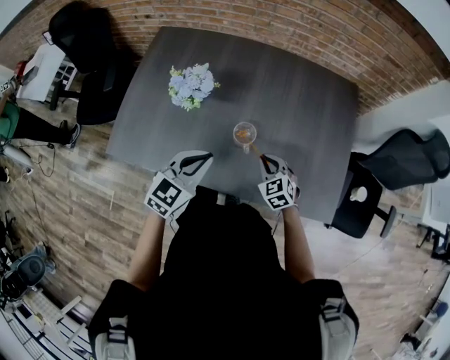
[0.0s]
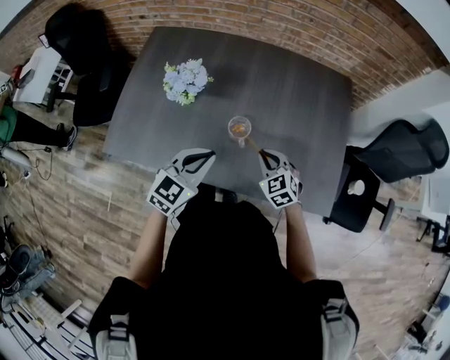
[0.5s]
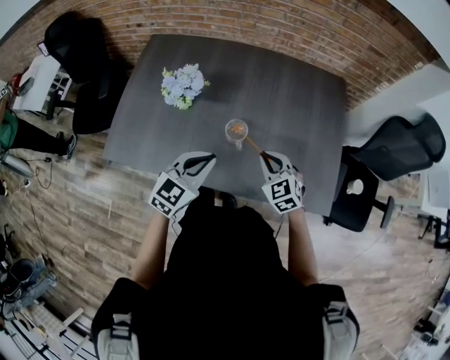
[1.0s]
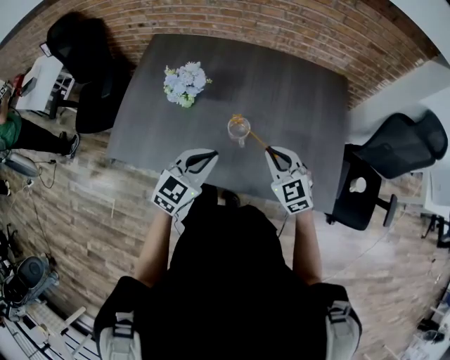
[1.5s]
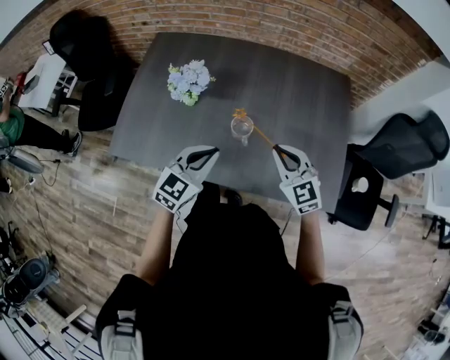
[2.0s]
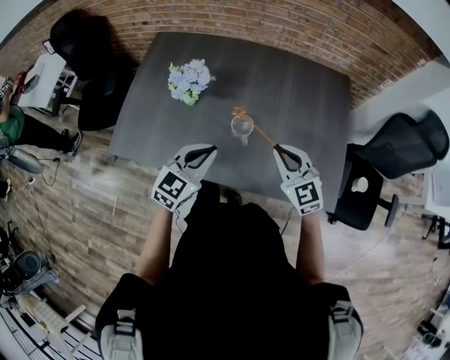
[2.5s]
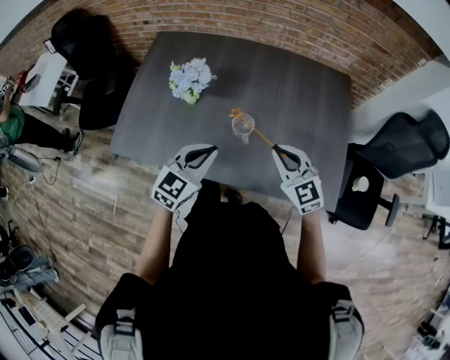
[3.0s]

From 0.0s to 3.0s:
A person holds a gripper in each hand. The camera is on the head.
From 0.0s to 1.5s: The right gripper moves upward, roughly 15 cm.
From 1.5s to 3.0s: The grippers move only a little.

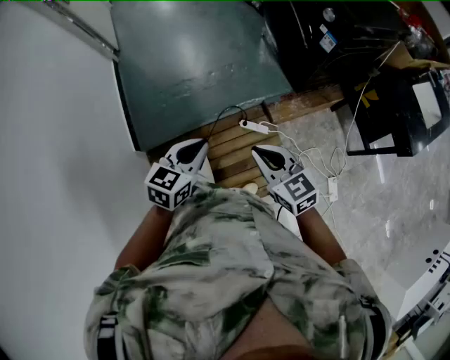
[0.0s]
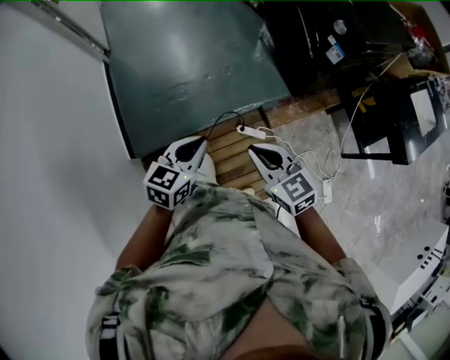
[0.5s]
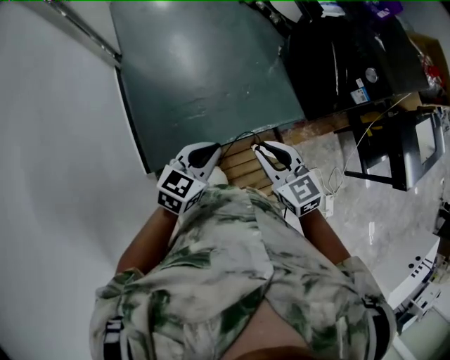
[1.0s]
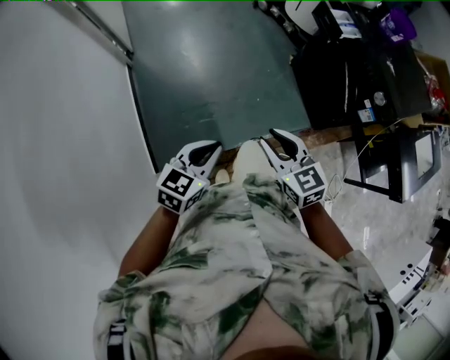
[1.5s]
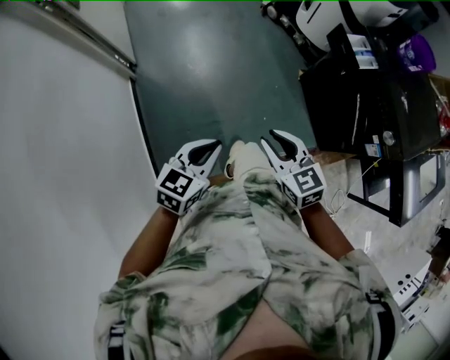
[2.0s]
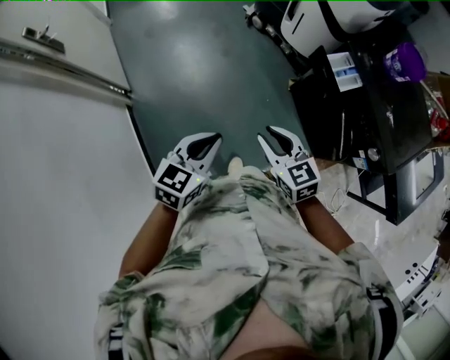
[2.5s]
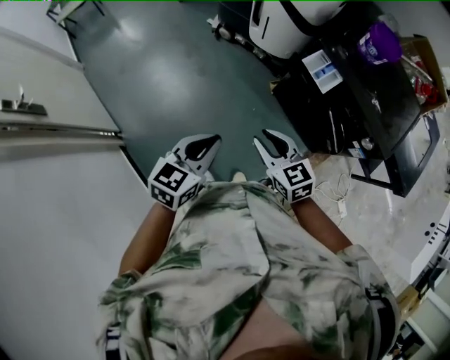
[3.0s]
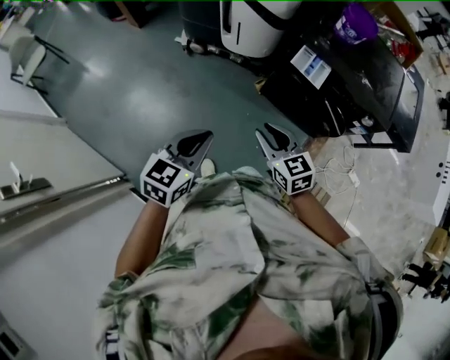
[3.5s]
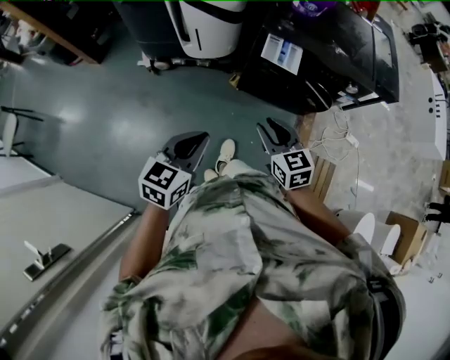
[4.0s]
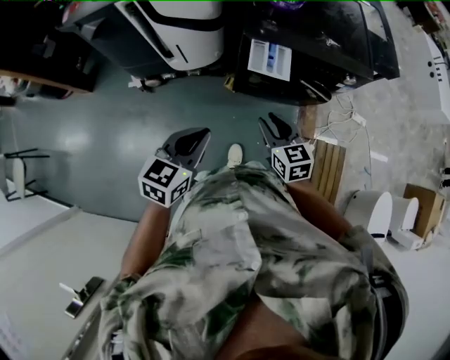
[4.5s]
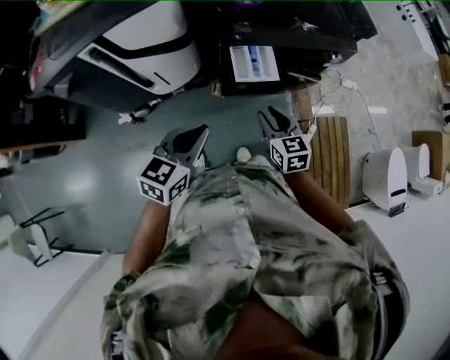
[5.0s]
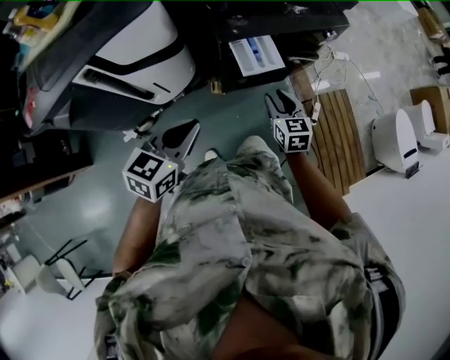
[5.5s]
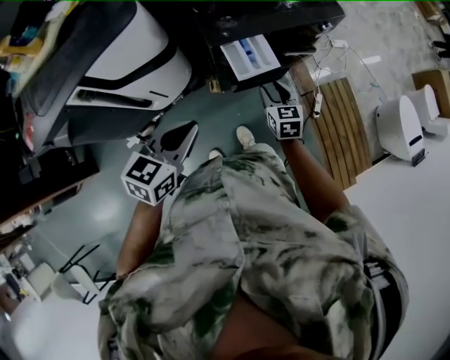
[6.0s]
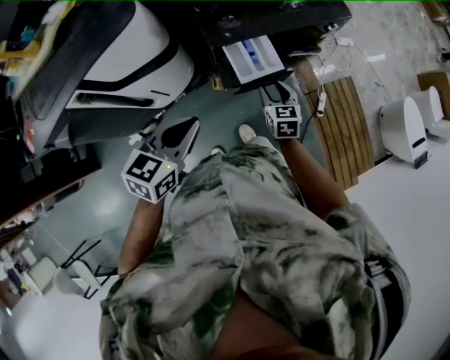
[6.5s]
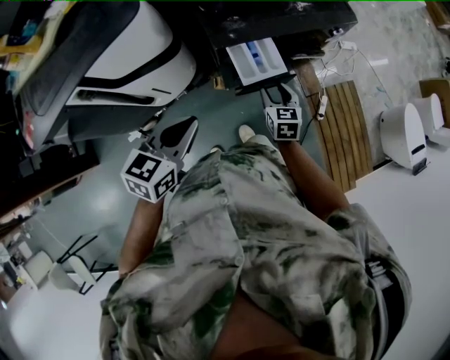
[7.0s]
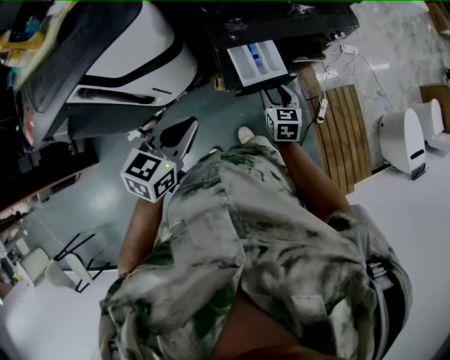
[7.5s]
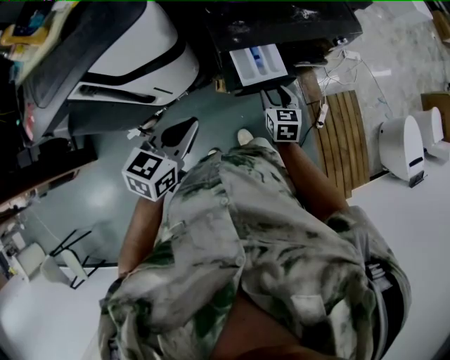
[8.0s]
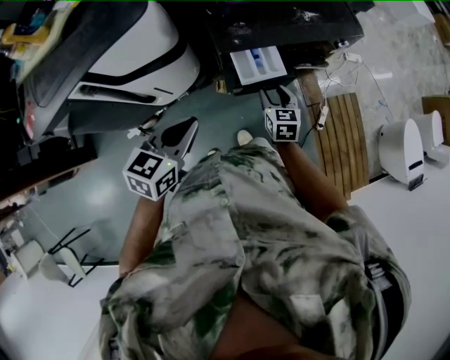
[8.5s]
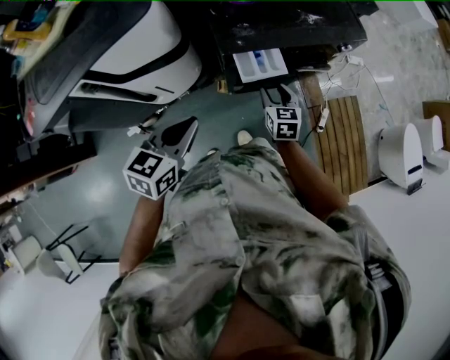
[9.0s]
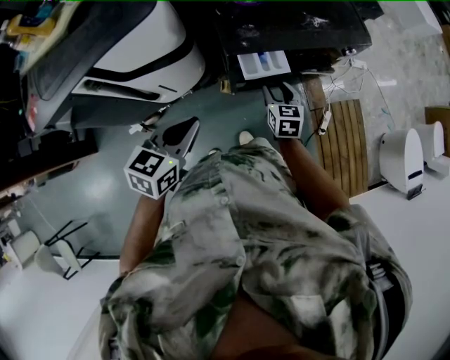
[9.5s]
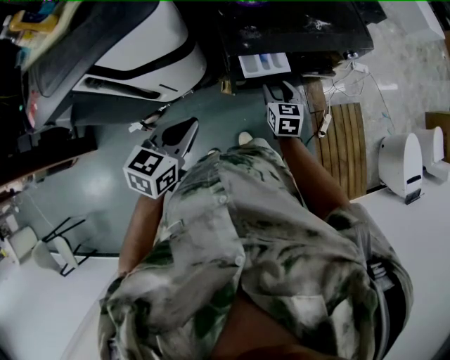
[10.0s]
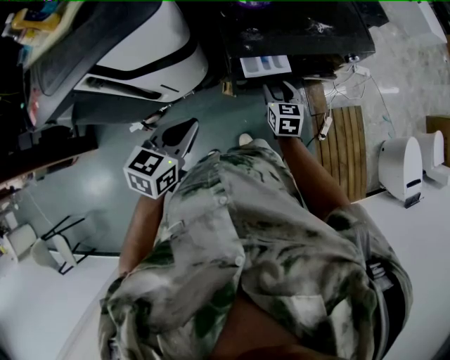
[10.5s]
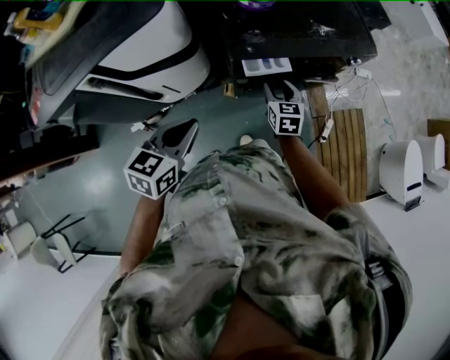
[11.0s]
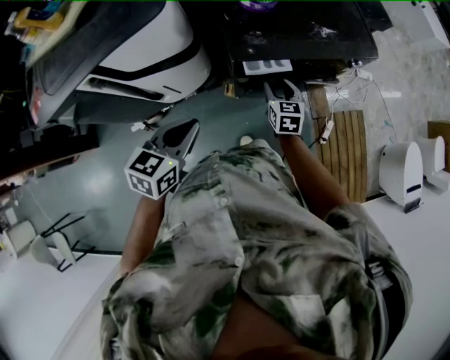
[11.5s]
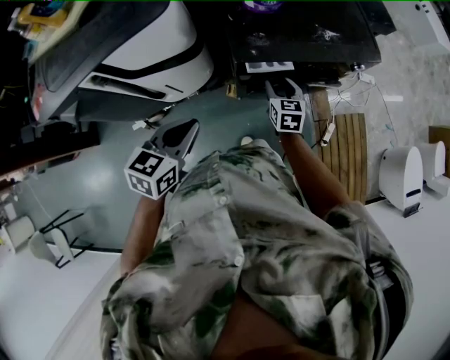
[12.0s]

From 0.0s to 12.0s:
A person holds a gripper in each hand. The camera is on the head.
From 0.0s to 2.0s: Both grippers are carried forward and to the left, some 50 cm. The right gripper opens up.
From 2.0s to 4.0s: The left gripper changes place by roughly 50 cm, and changes its angle by some 50 degrees. The right gripper shifts by approximately 40 cm, and swivels about 60 degrees.
From 4.0s to 6.0s: The right gripper changes place by some 30 cm, and rotates approximately 50 degrees. The left gripper changes place by some 30 cm, and turns by about 40 degrees.
From 6.0s to 8.0s: There are only small adjustments of the grippers.
From 8.0s to 10.0s: There are only small adjustments of the grippers.
From 10.0s to 12.0s: The grippers stay close to where they were, moving slightly.

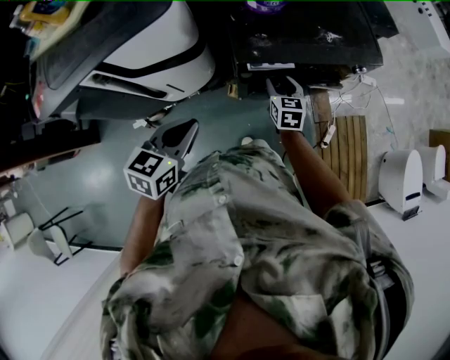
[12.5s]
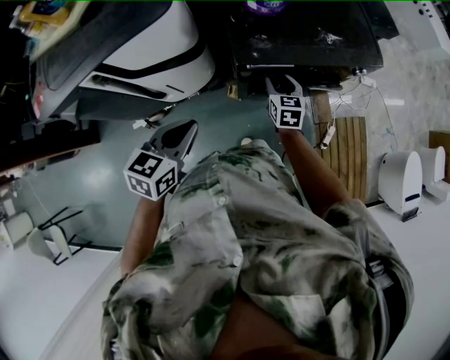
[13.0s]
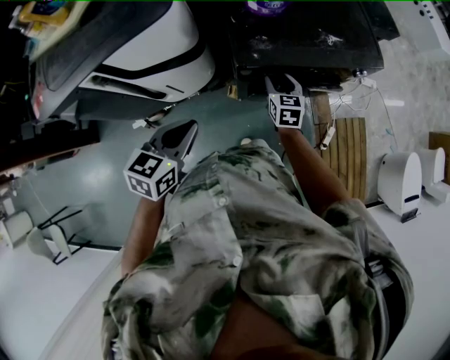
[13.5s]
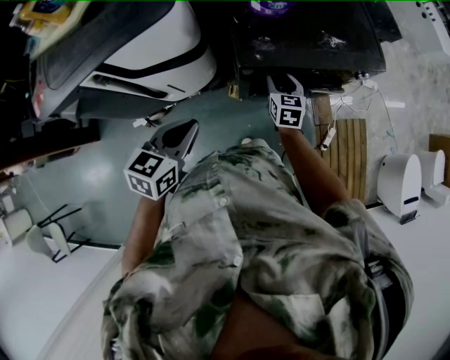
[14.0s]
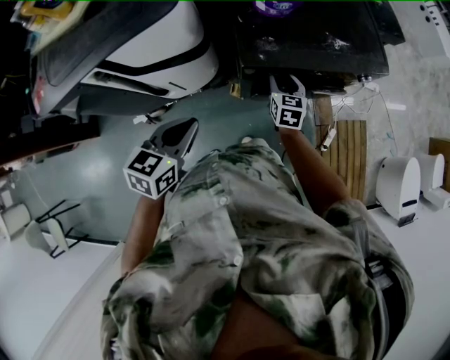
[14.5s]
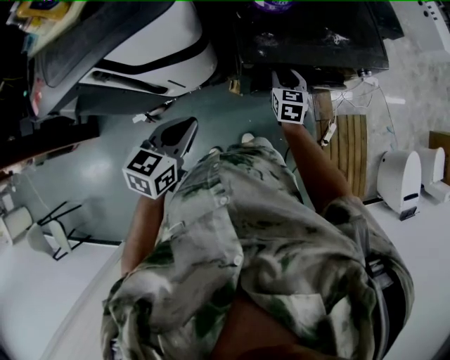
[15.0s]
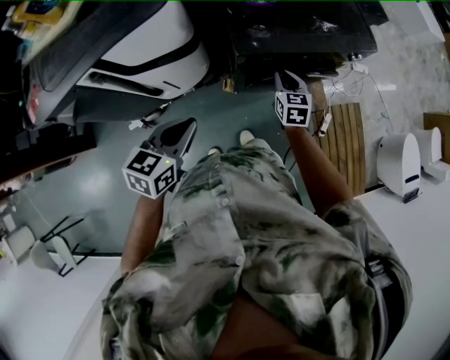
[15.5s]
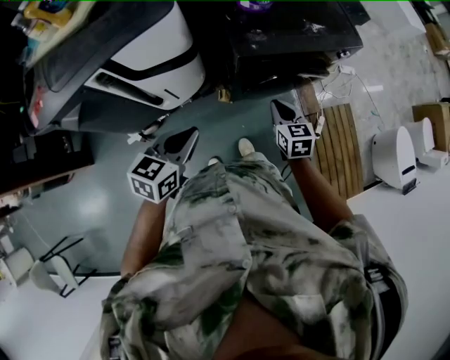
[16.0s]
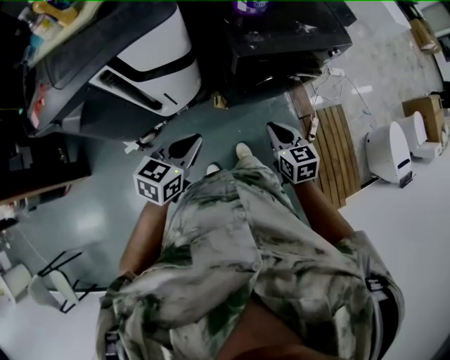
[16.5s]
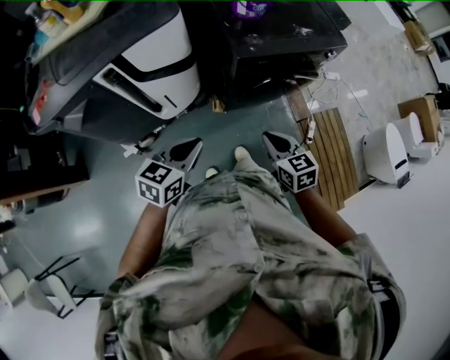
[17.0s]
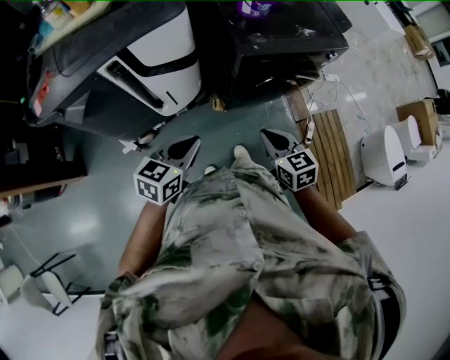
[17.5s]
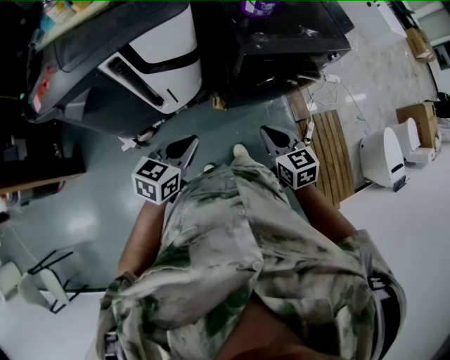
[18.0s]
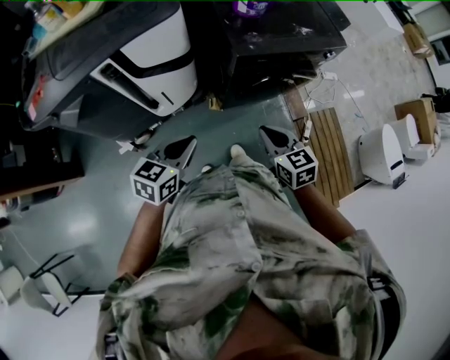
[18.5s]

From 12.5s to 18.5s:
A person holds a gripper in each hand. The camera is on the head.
From 12.5s to 14.5s: The grippers move only a little.
From 14.5s to 16.5s: The right gripper is displaced backward by roughly 30 cm, and closes up. Meanwhile the left gripper heads backward, covering approximately 15 cm.
From 16.5s to 18.5s: The right gripper shifts by about 5 cm.

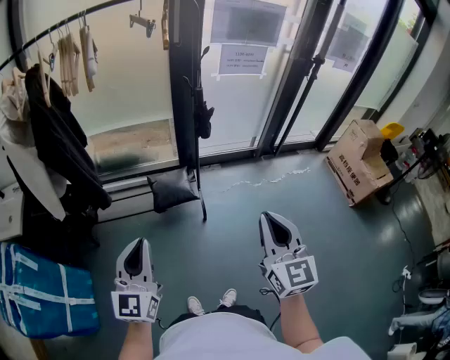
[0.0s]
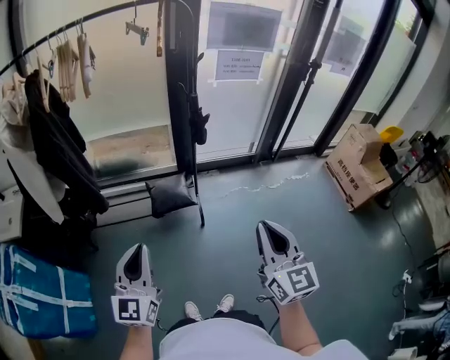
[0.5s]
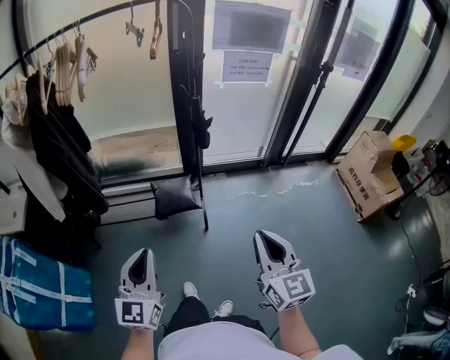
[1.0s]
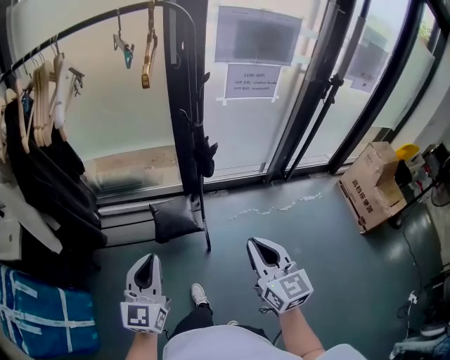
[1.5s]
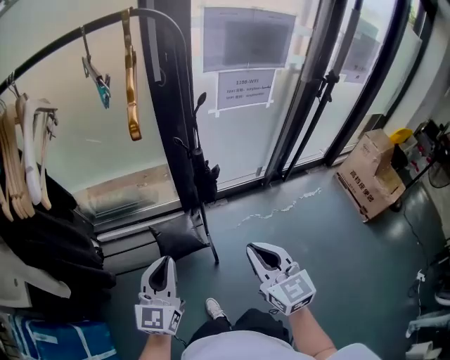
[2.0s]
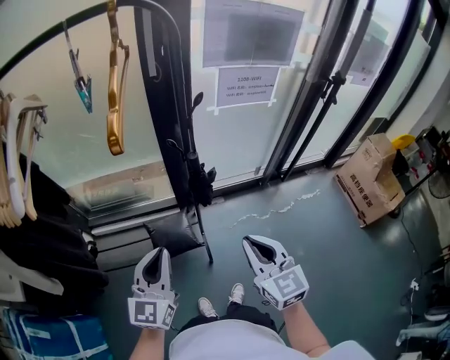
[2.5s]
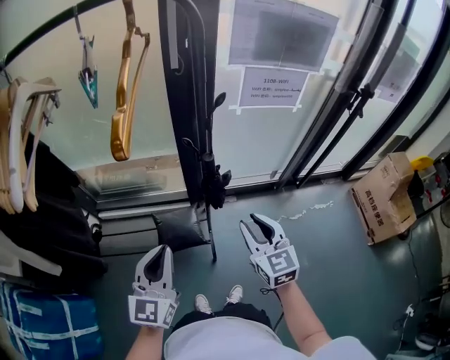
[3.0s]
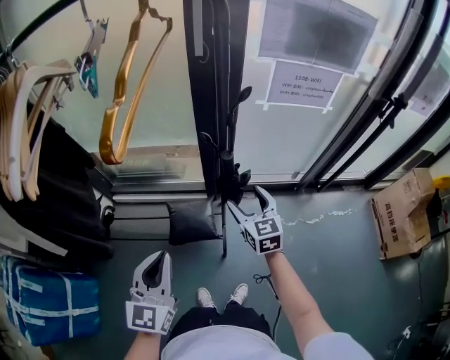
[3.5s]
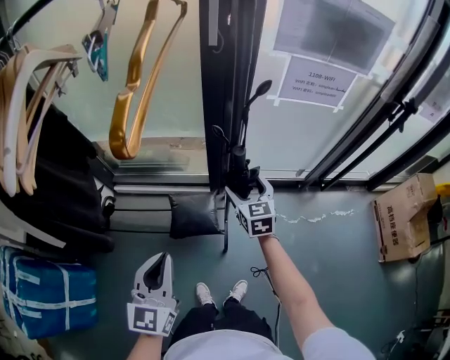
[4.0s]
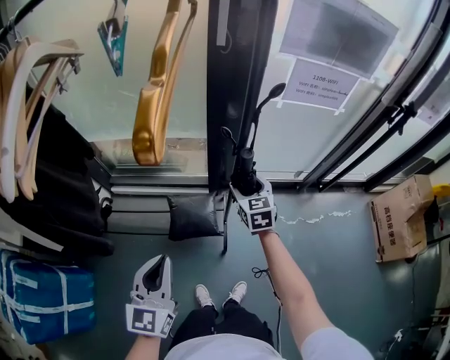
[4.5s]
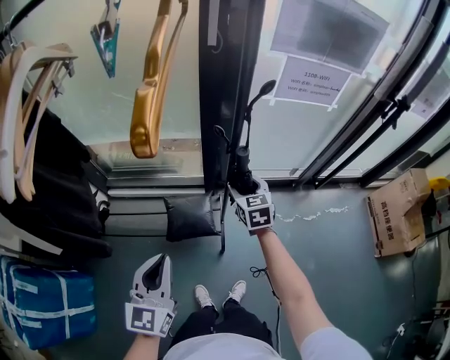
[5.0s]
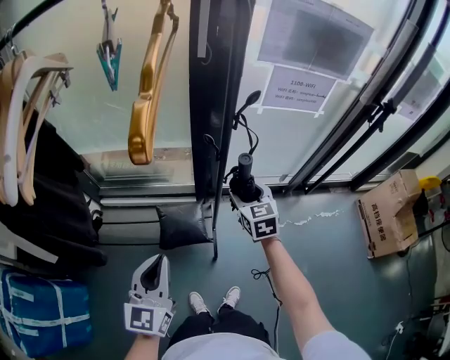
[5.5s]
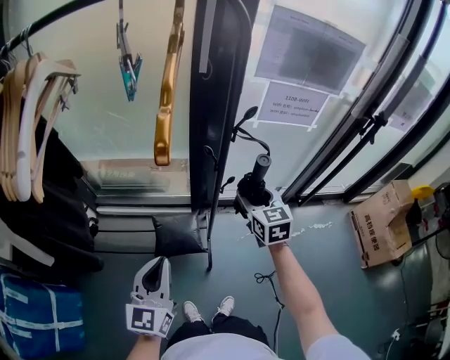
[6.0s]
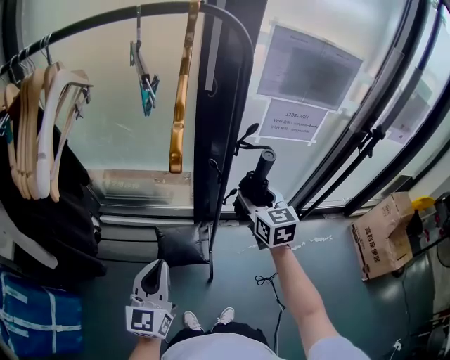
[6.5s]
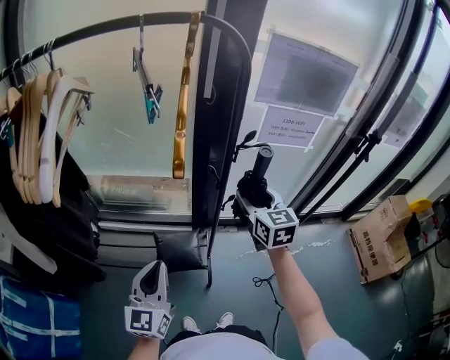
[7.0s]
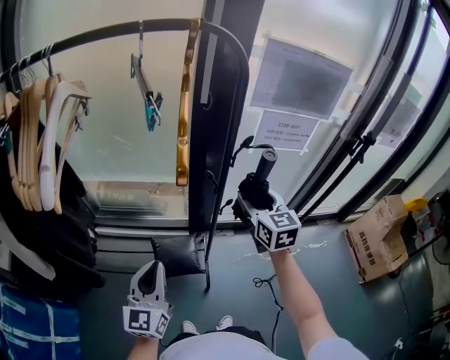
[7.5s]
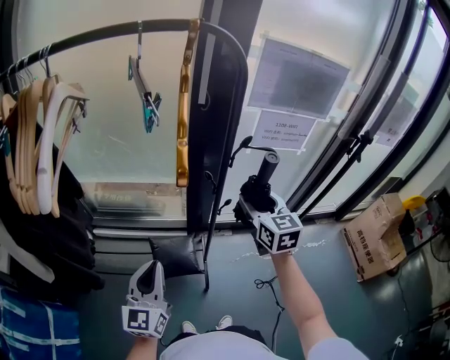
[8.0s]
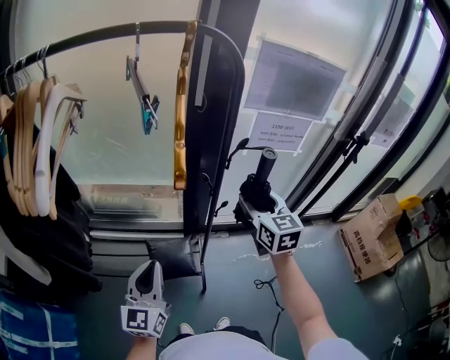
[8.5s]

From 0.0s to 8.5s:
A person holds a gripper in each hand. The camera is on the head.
From 0.0s to 2.0s: Both grippers travel together forward, roughly 25 cm.
From 2.0s to 4.0s: The right gripper moves forward and downward, approximately 35 cm, and opens.
From 4.0s to 6.5s: The right gripper heads upward, covering some 15 cm, and closes.
From 6.5s to 8.5s: The right gripper shifts by some 5 cm.
